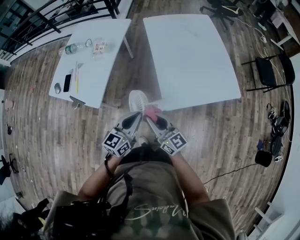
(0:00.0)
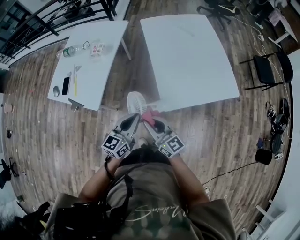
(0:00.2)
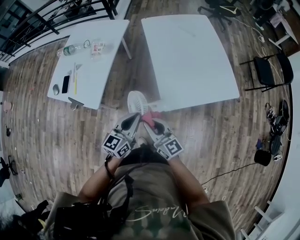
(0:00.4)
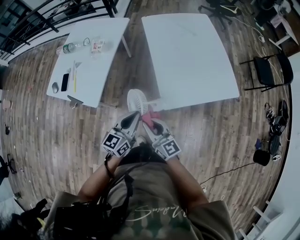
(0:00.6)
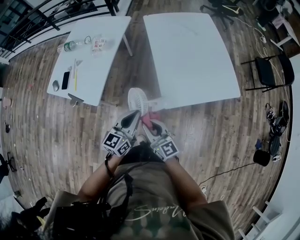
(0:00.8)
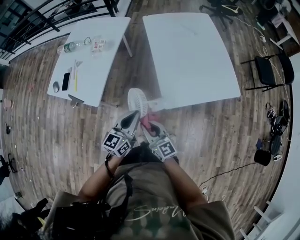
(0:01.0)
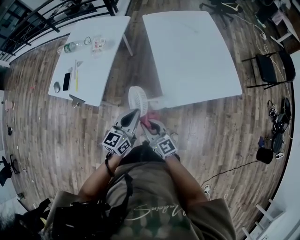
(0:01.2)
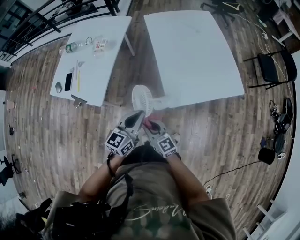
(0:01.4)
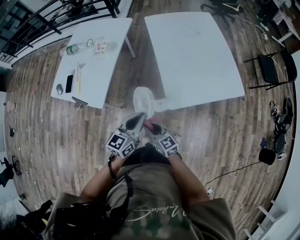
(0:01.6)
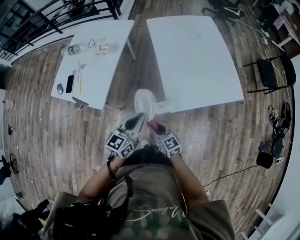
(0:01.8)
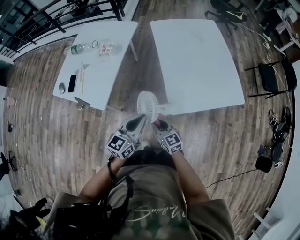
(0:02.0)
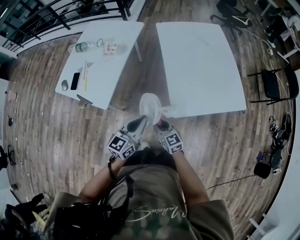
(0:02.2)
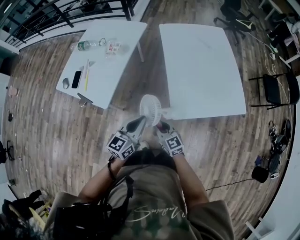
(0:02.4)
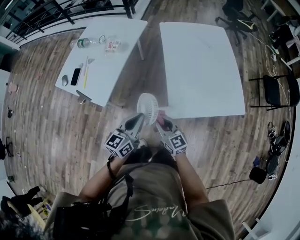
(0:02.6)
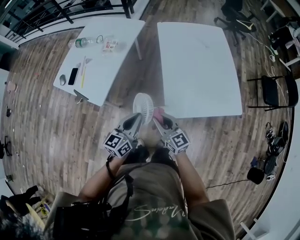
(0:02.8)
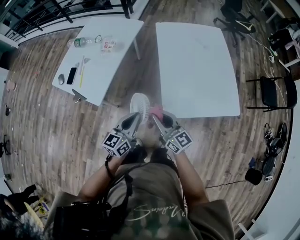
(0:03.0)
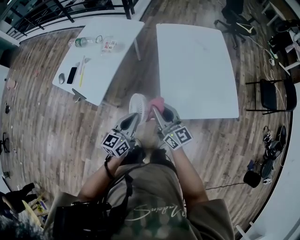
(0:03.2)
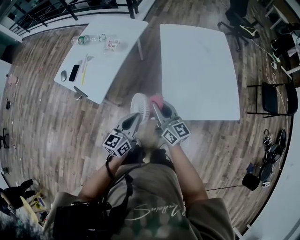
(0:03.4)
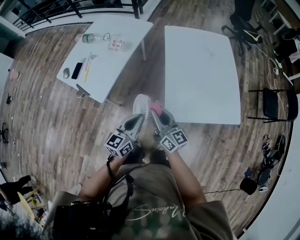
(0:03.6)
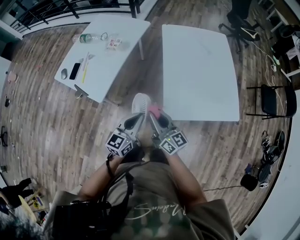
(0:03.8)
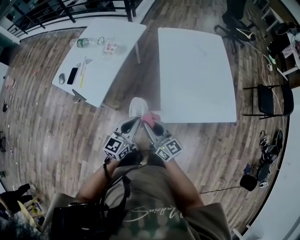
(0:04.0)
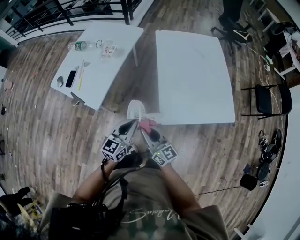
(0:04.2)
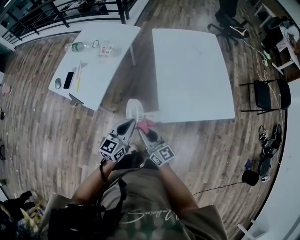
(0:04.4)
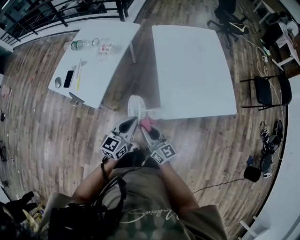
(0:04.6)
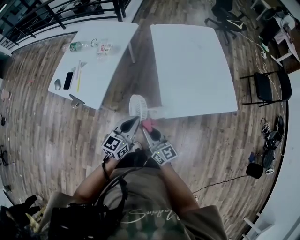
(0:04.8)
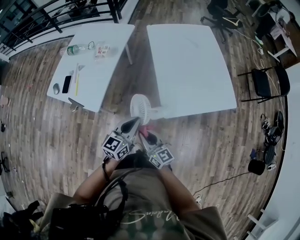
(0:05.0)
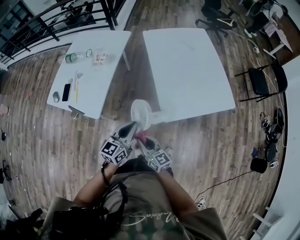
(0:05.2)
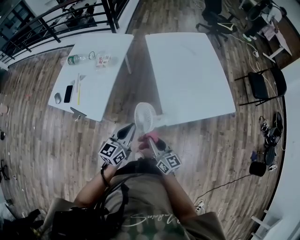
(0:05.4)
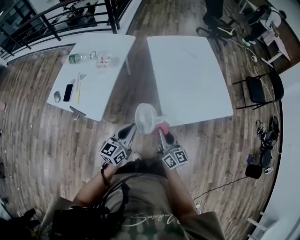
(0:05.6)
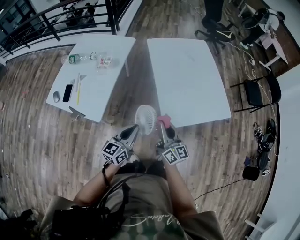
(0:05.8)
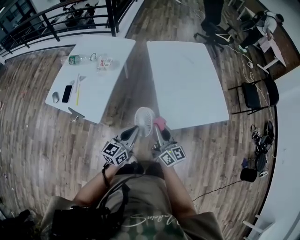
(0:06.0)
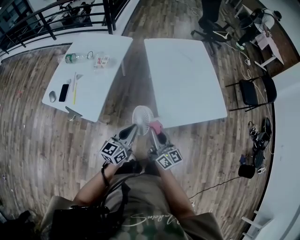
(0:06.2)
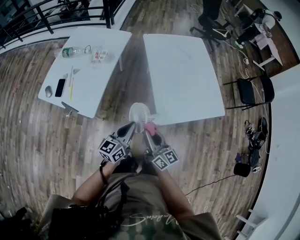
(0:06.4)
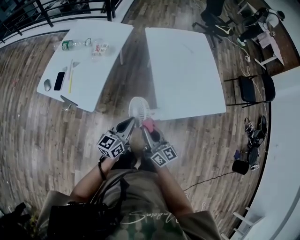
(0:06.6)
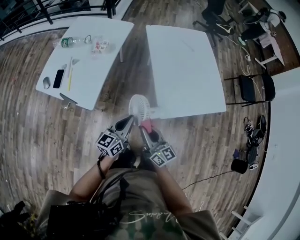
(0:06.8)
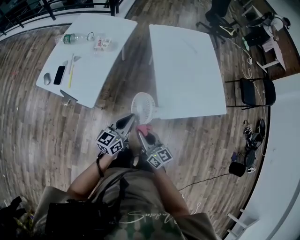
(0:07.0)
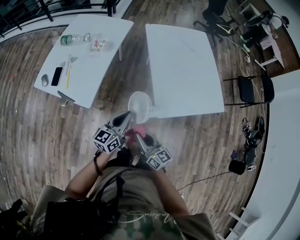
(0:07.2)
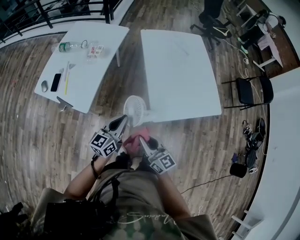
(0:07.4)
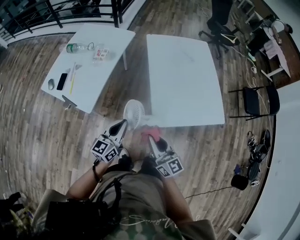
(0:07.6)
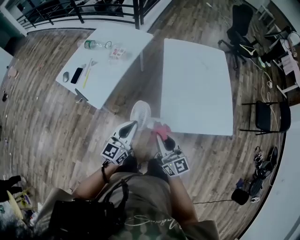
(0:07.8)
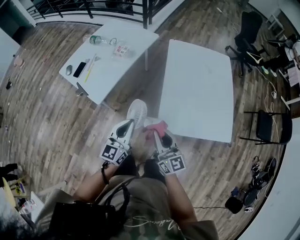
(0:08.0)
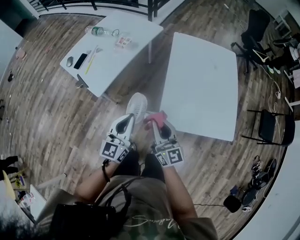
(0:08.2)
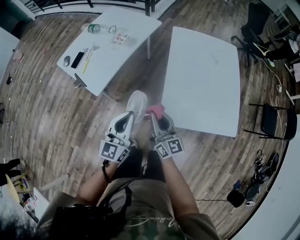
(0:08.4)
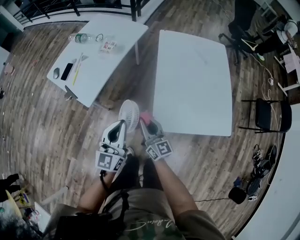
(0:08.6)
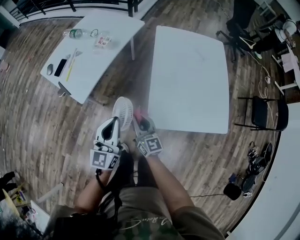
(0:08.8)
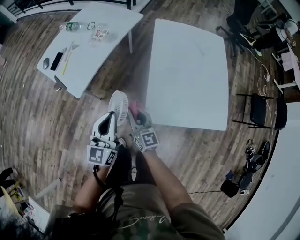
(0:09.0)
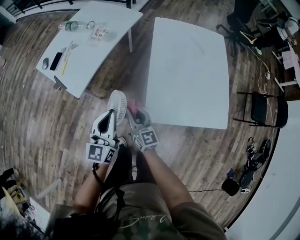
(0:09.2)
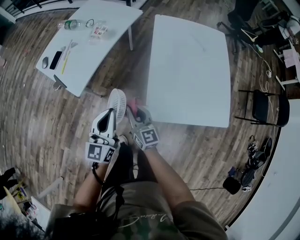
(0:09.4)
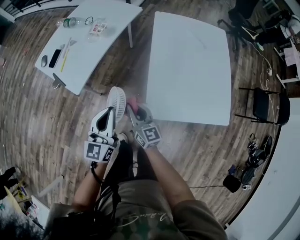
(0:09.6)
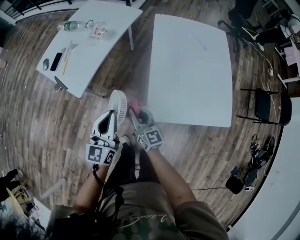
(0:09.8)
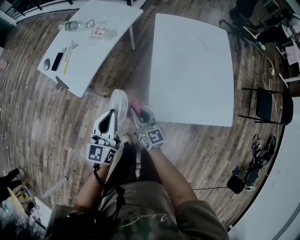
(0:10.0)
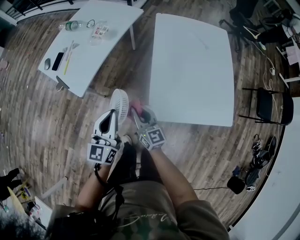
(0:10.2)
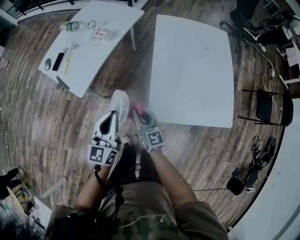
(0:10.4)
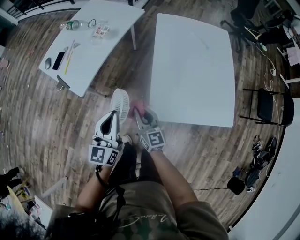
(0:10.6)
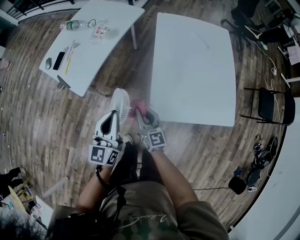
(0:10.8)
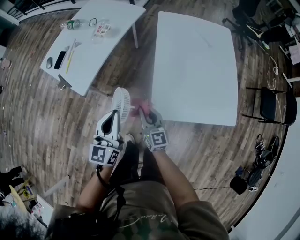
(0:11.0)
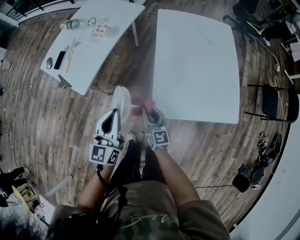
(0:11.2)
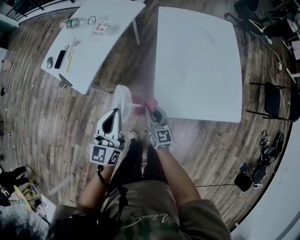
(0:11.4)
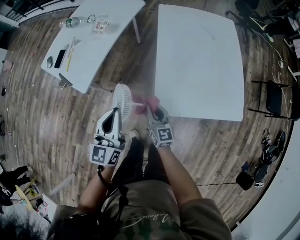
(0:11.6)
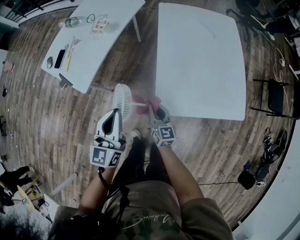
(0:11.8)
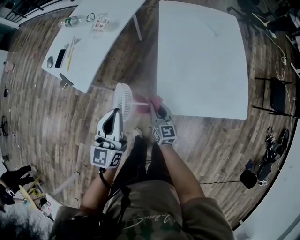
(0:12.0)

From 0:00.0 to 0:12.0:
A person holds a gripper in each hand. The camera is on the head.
From 0:00.0 to 0:01.6: The right gripper goes some 15 cm downward and to the left, and changes its angle by about 20 degrees.
From 0:01.6 to 0:03.0: The right gripper moves upward, to the right and forward, approximately 20 cm.
From 0:03.0 to 0:04.4: The right gripper moves to the left, about 5 cm.
From 0:04.4 to 0:06.0: The right gripper changes place by about 5 cm.
From 0:06.0 to 0:07.6: The right gripper travels backward by roughly 5 cm.
From 0:07.6 to 0:09.0: The left gripper turns by roughly 30 degrees, while the right gripper goes about 15 cm downward and forward.
From 0:09.0 to 0:10.4: The grippers move only a little.
From 0:10.4 to 0:12.0: The right gripper travels downward by roughly 10 cm.

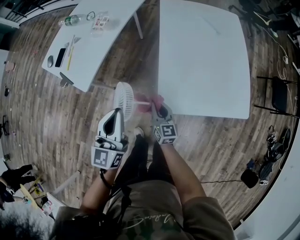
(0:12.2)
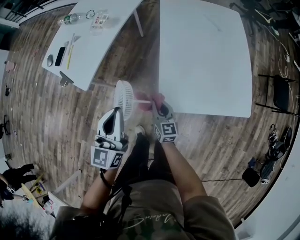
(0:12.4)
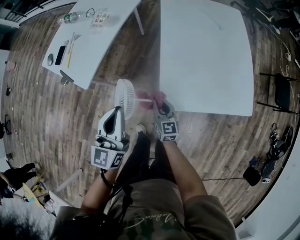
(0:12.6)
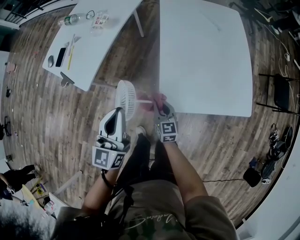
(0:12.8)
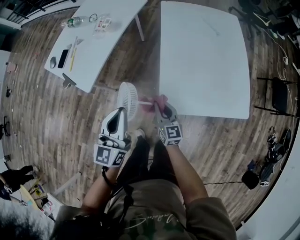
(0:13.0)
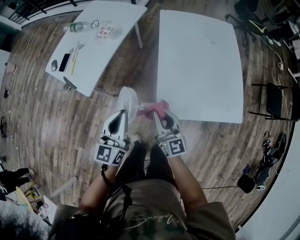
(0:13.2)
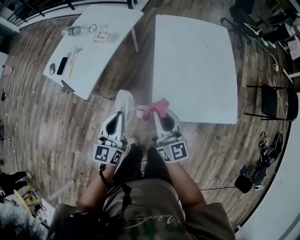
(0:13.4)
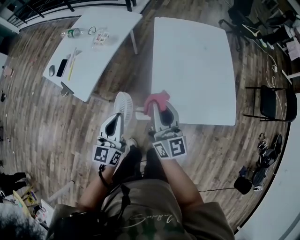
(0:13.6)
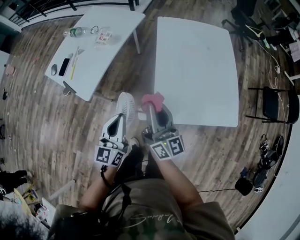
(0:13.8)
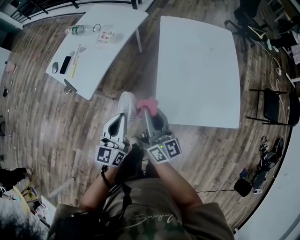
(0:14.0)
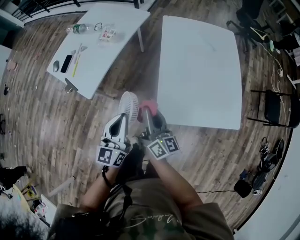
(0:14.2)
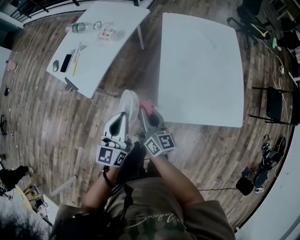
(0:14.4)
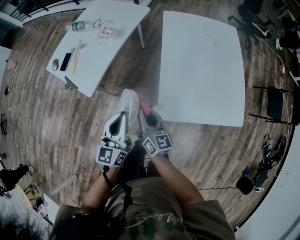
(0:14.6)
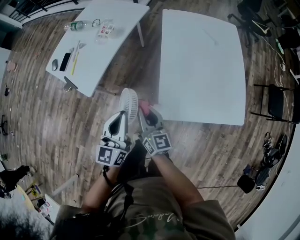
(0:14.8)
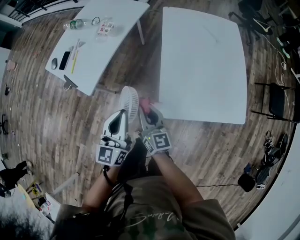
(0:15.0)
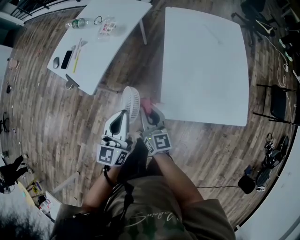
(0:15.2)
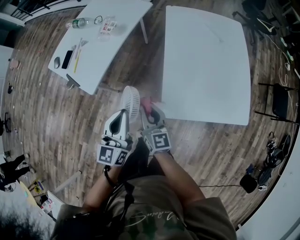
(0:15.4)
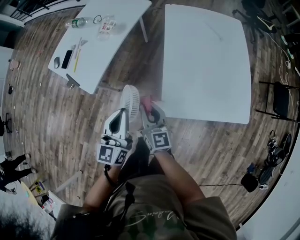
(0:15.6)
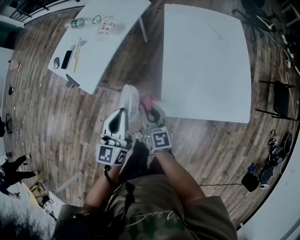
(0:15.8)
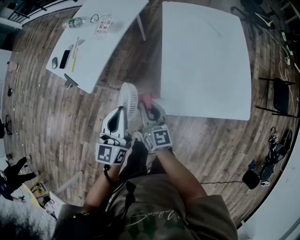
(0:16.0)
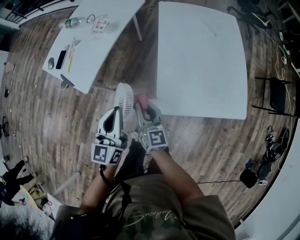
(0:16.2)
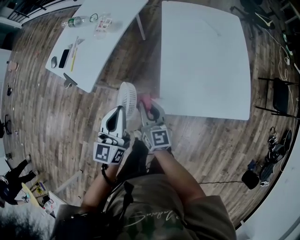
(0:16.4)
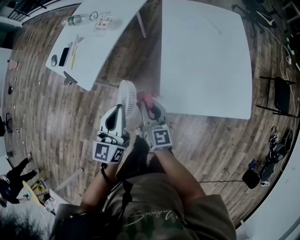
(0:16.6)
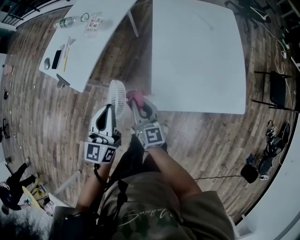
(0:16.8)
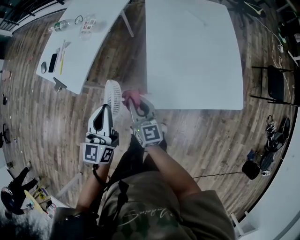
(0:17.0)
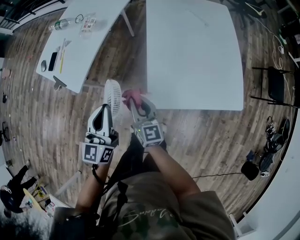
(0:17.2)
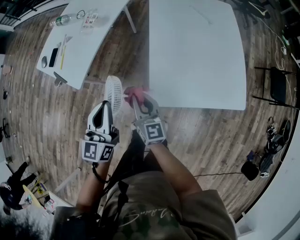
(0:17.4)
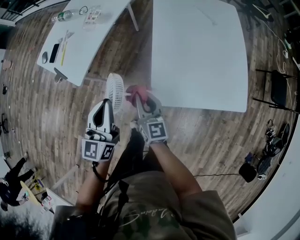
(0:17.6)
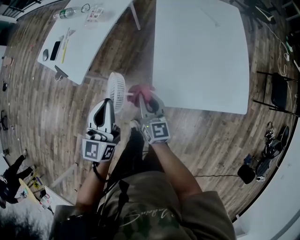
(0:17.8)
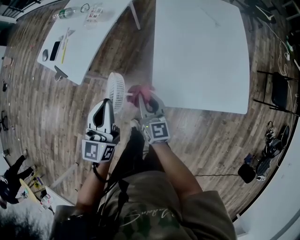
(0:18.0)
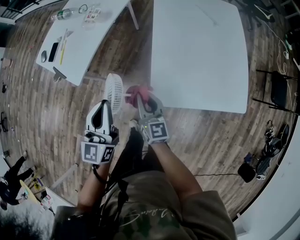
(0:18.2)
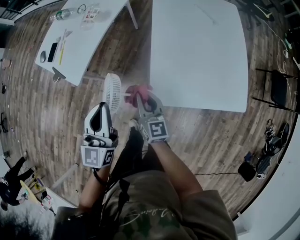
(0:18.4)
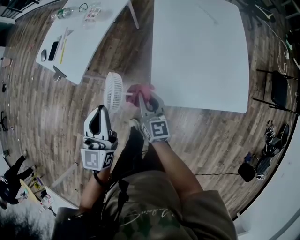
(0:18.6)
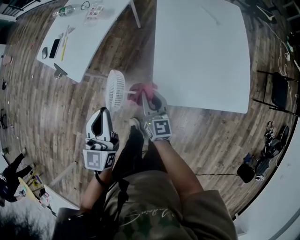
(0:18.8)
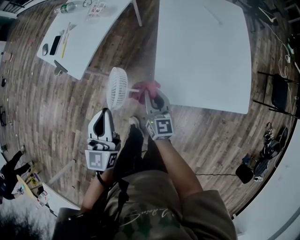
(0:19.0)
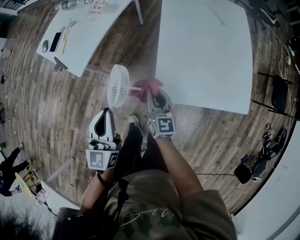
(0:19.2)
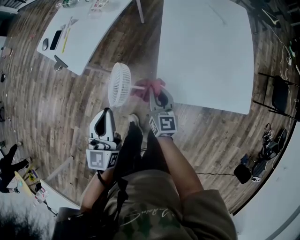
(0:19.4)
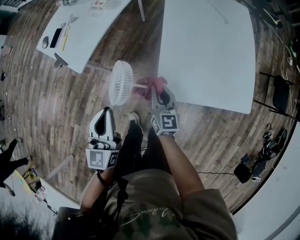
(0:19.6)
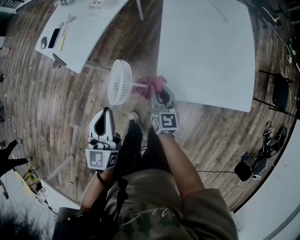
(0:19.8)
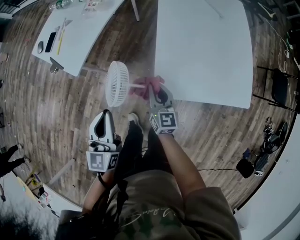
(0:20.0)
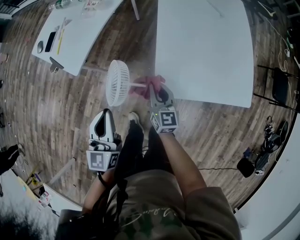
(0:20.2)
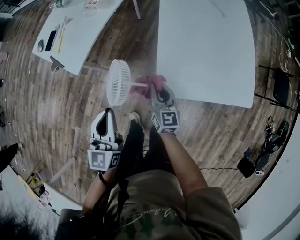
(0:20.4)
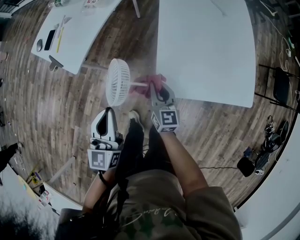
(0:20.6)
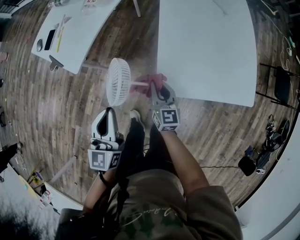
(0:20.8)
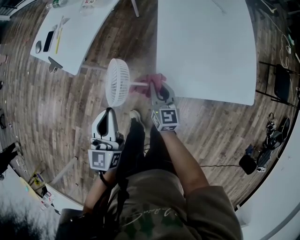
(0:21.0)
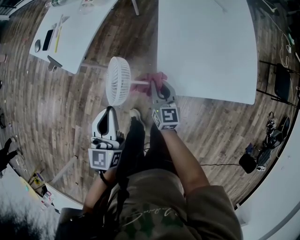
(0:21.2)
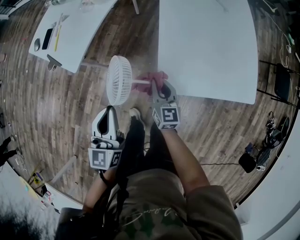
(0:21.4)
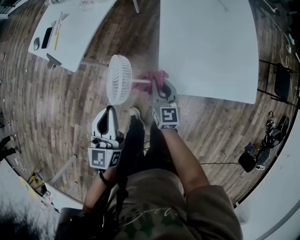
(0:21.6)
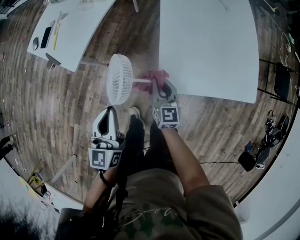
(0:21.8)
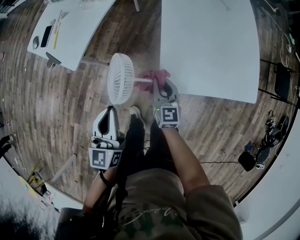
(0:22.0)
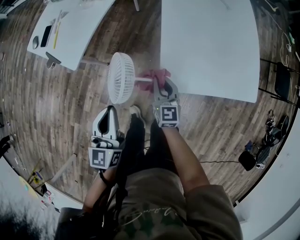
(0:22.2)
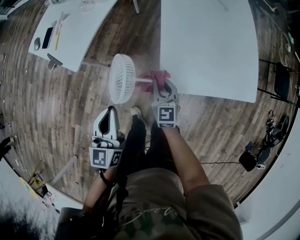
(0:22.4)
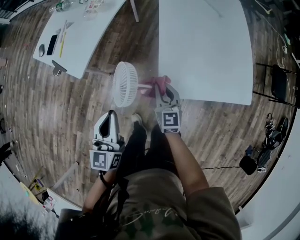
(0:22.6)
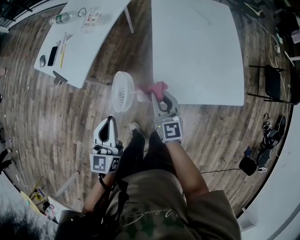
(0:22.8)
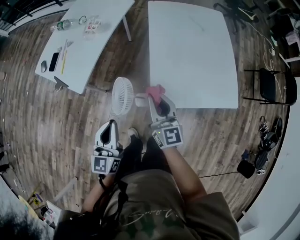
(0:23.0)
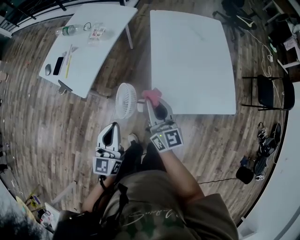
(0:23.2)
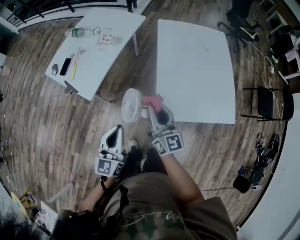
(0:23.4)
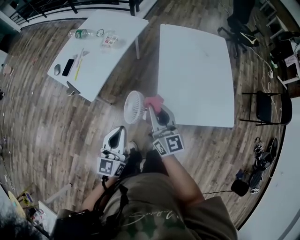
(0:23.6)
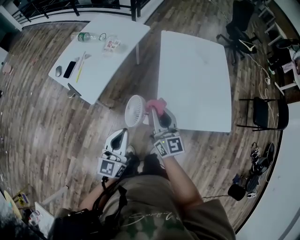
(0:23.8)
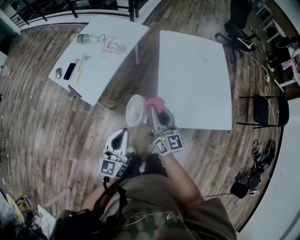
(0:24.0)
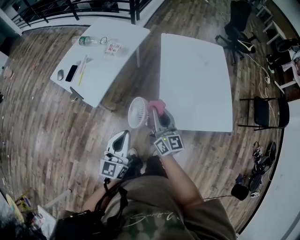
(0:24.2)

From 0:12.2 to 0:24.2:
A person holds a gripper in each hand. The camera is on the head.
From 0:12.2 to 0:13.8: The right gripper is displaced upward by about 25 cm, and swivels about 30 degrees.
From 0:13.8 to 0:15.2: The right gripper shifts about 15 cm downward and to the left, and rotates roughly 20 degrees.
From 0:15.2 to 0:18.2: The grippers move only a little.
From 0:18.2 to 0:19.8: The left gripper shifts about 5 cm backward. The right gripper ends up about 5 cm from where it was.
From 0:19.8 to 0:22.6: The grippers move only a little.
From 0:22.6 to 0:24.2: The left gripper travels upward by some 5 cm; the right gripper heads upward, covering some 20 cm, and turns by some 30 degrees.
